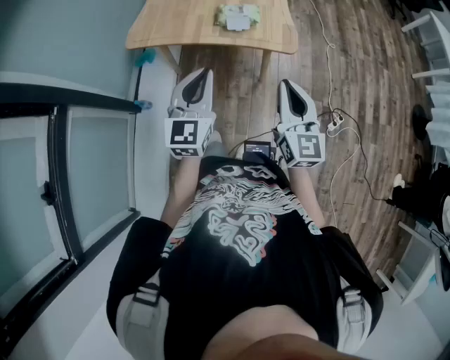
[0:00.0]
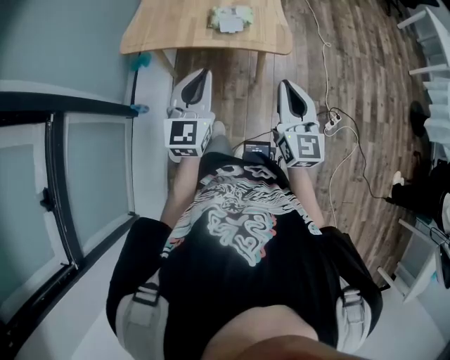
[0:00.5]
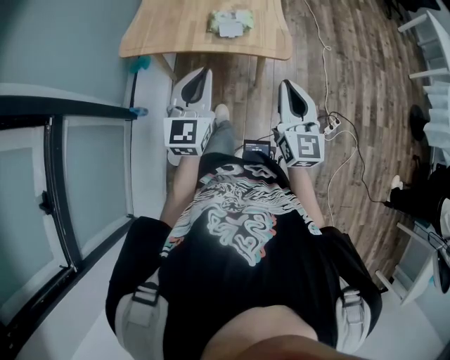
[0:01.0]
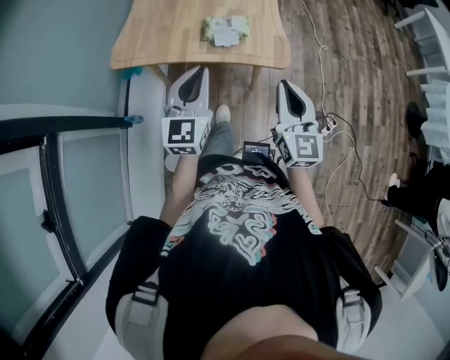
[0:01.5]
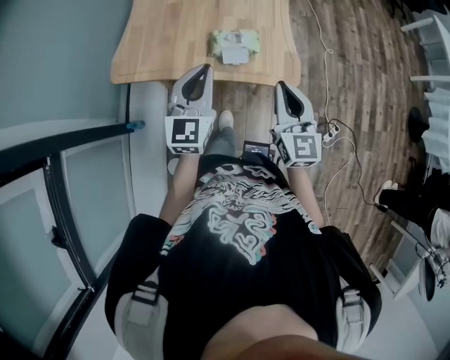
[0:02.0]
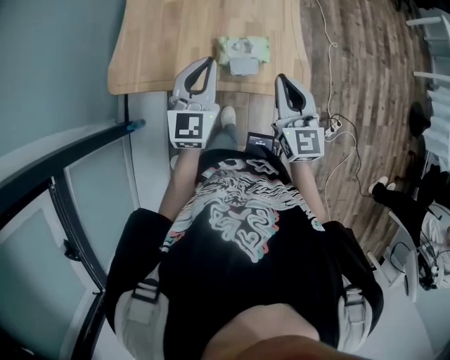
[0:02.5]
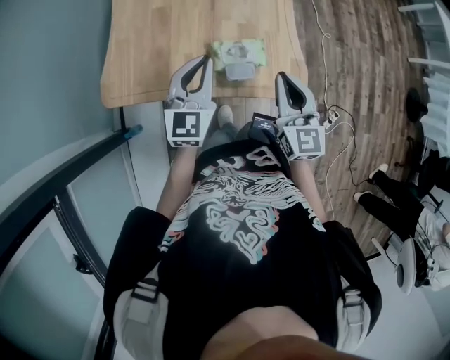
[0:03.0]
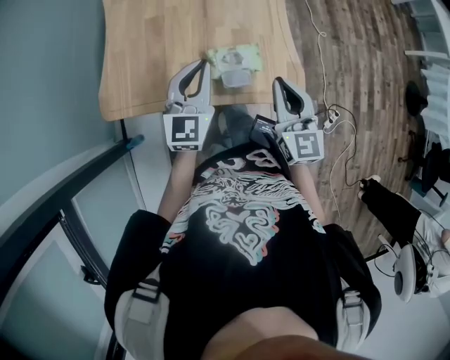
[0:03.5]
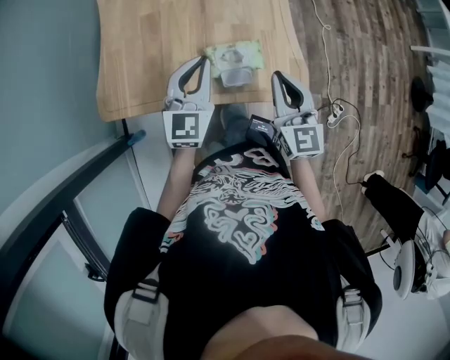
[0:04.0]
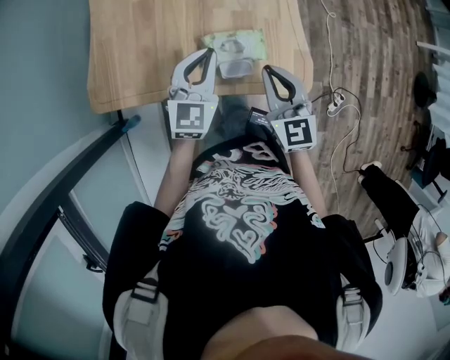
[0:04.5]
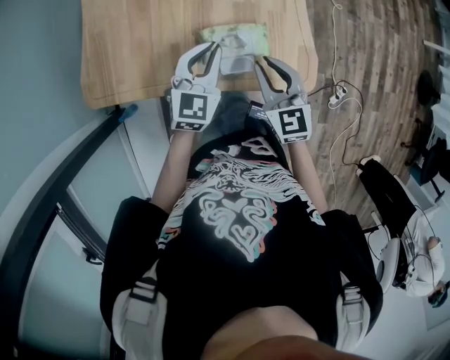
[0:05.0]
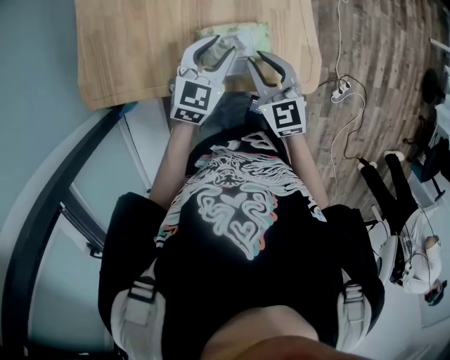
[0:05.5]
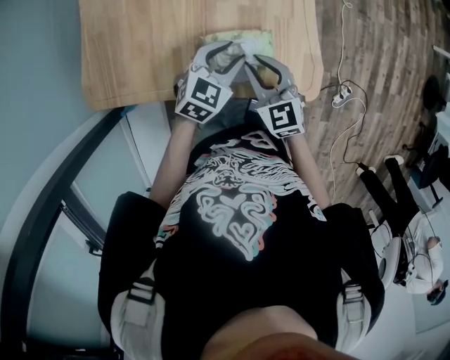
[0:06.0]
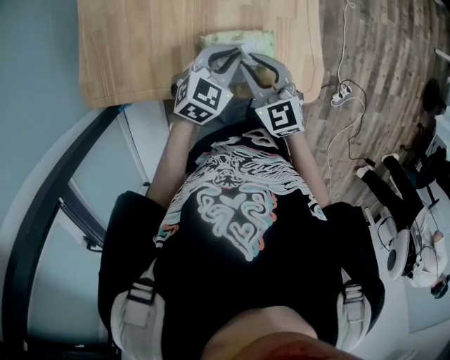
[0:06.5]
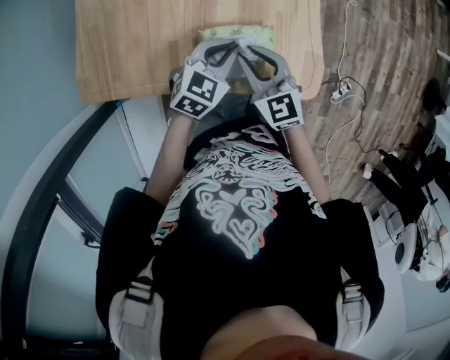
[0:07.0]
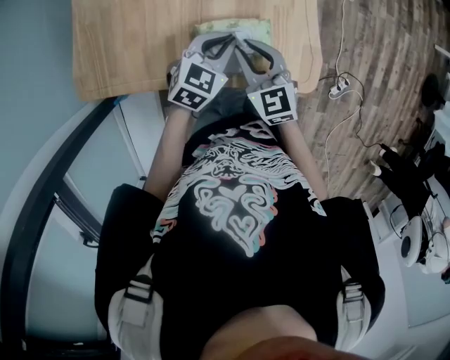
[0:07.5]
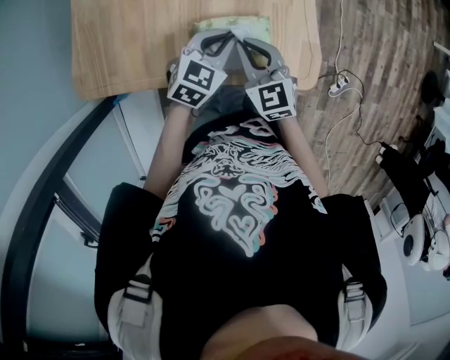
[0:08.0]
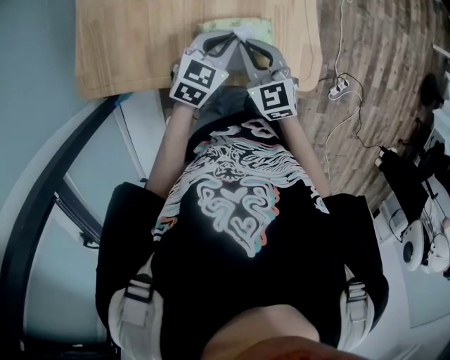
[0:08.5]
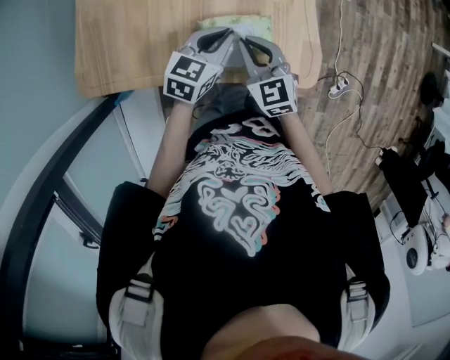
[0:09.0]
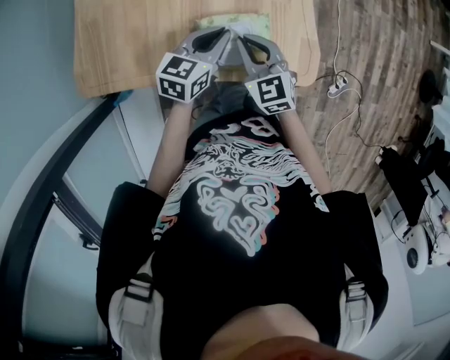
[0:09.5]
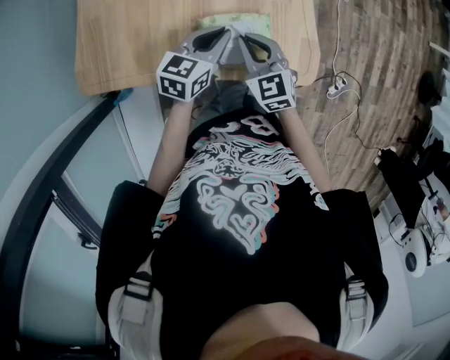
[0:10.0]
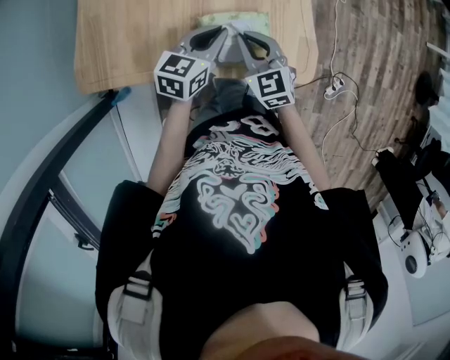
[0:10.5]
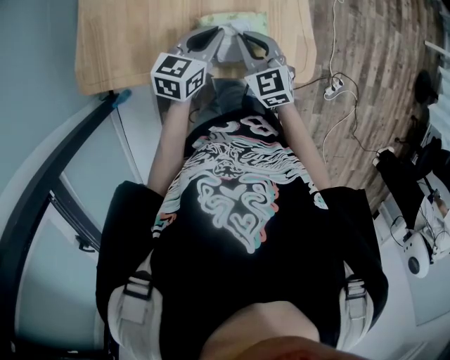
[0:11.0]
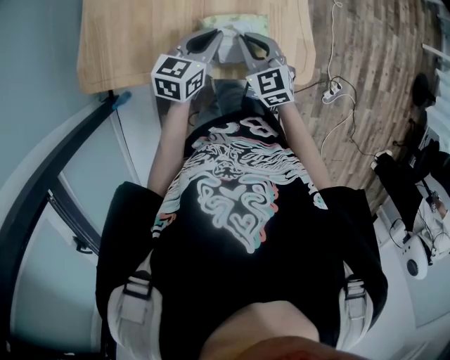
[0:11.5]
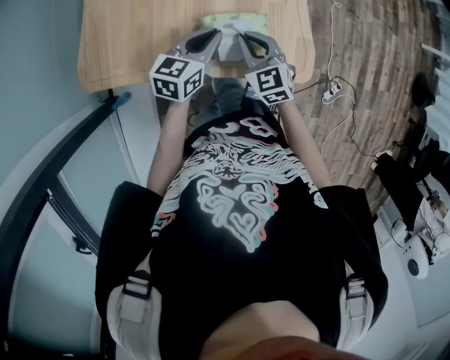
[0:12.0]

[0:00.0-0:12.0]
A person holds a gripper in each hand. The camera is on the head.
0.0 to 2.0 s: The grippers both shift forward by approximately 20 cm.
2.0 to 4.0 s: Both grippers move forward and downward, about 20 cm.
4.0 to 6.0 s: The right gripper heads downward and to the left, covering about 15 cm, rotates approximately 30 degrees, and opens, while the left gripper shifts roughly 15 cm downward and to the right, turns by some 30 degrees, and opens its fingers.
6.0 to 8.0 s: The left gripper closes.
8.0 to 10.0 s: The left gripper rotates roughly 20 degrees.
10.0 to 12.0 s: The grippers make only small movements.

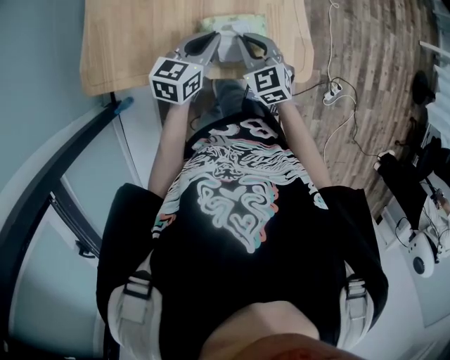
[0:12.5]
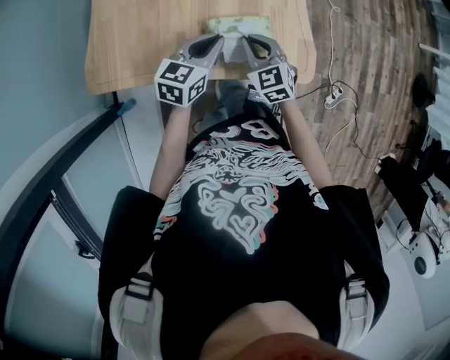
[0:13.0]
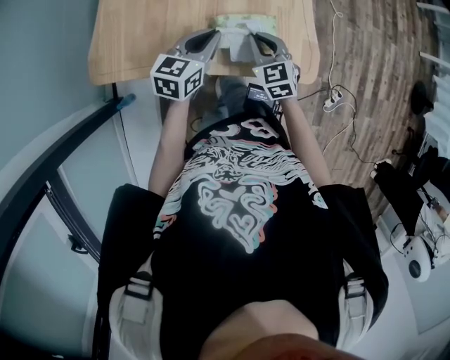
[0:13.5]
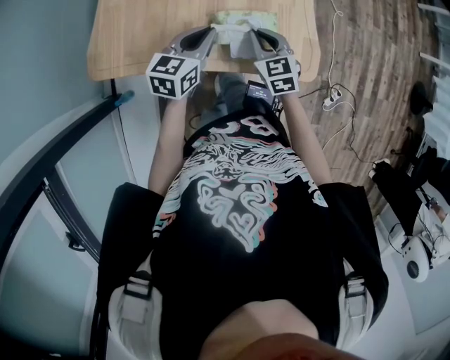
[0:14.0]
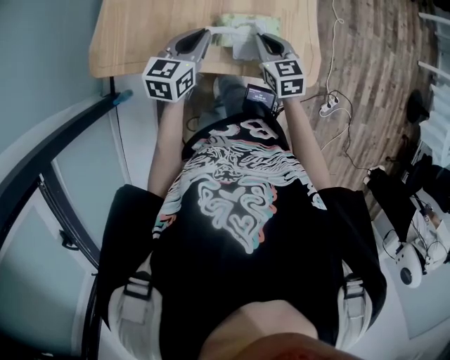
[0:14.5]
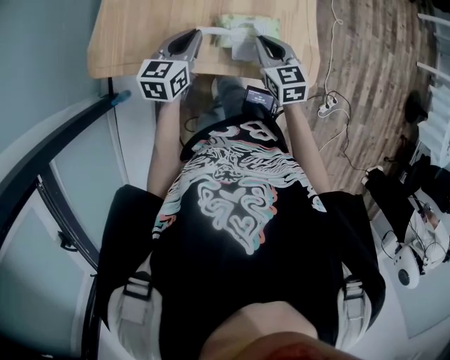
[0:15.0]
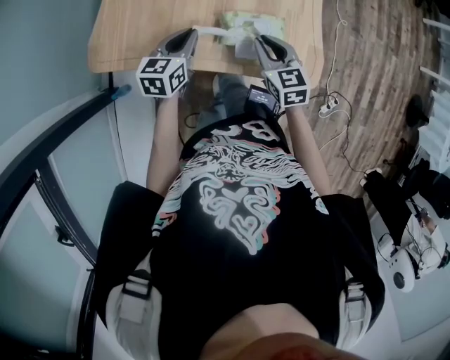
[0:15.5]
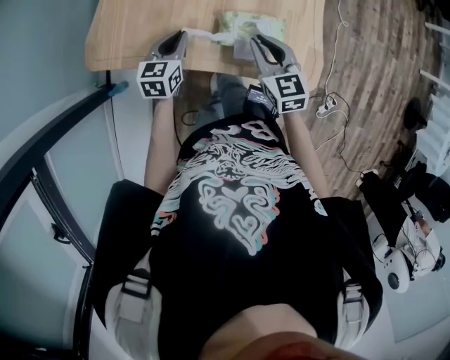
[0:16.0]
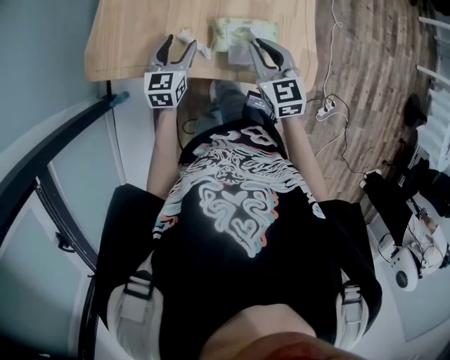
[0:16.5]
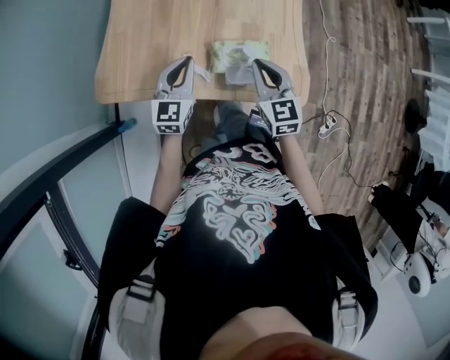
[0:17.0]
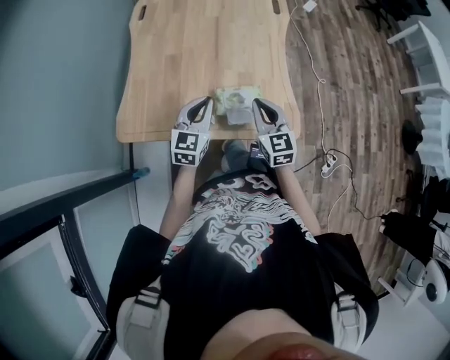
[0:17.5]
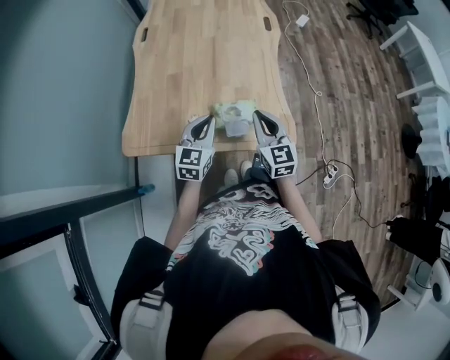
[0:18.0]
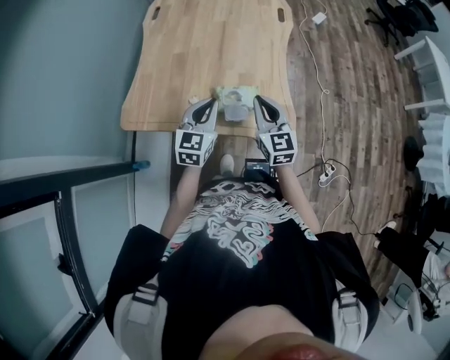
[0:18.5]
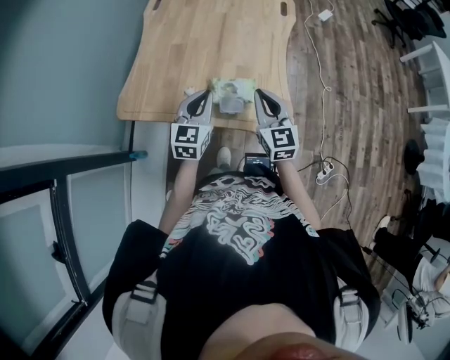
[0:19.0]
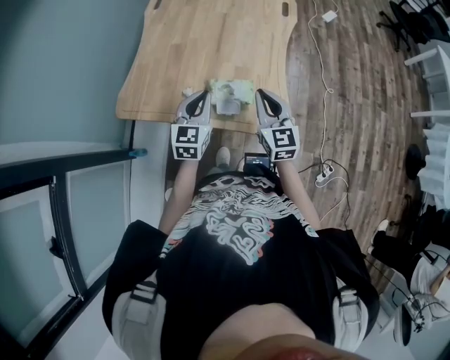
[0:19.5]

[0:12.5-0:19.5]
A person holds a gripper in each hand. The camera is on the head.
12.5 to 14.5 s: The left gripper is displaced to the left by roughly 5 cm.
14.5 to 16.0 s: The left gripper shifts about 10 cm downward and to the left.
16.0 to 17.5 s: The right gripper shifts some 10 cm upward. Meanwhile the left gripper travels upward and to the right by approximately 20 cm, swivels approximately 30 degrees, and opens, then closes once more.
17.5 to 19.5 s: The left gripper ends up approximately 5 cm from where it was. The right gripper goes some 5 cm to the right.

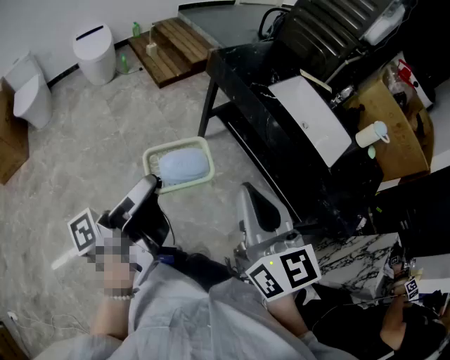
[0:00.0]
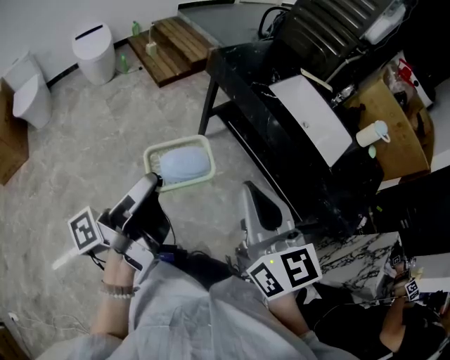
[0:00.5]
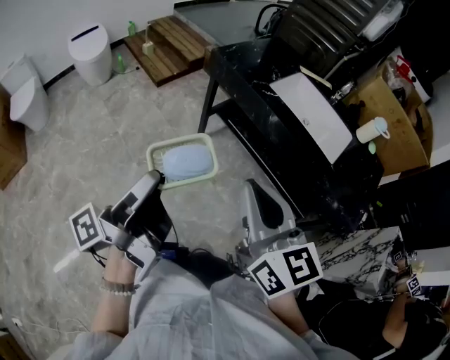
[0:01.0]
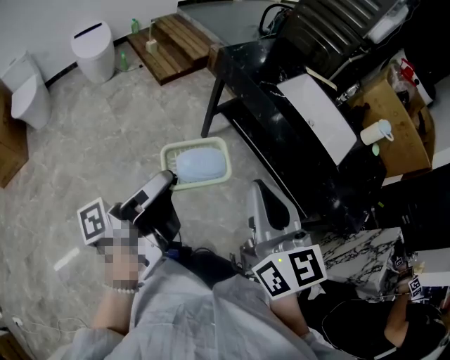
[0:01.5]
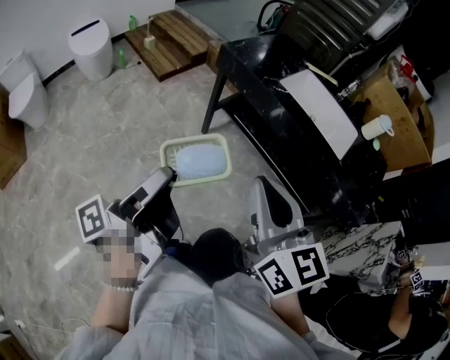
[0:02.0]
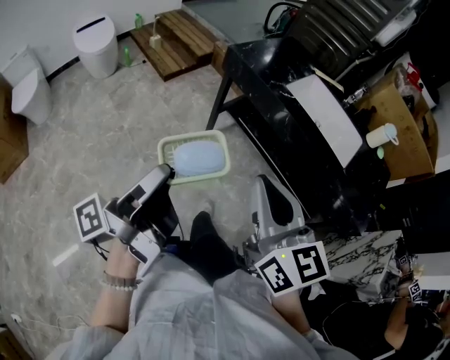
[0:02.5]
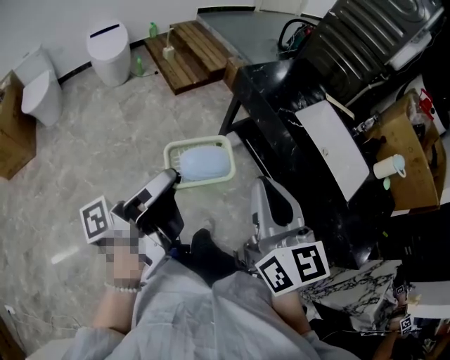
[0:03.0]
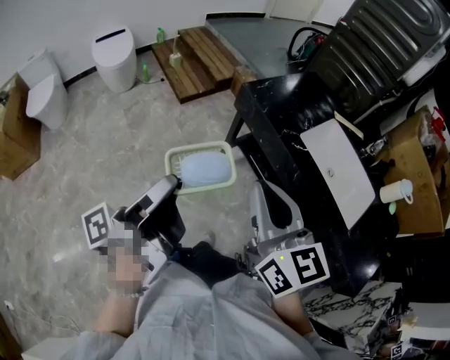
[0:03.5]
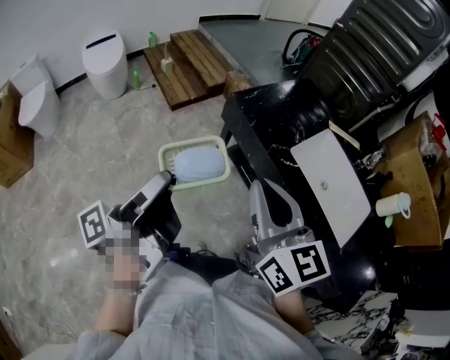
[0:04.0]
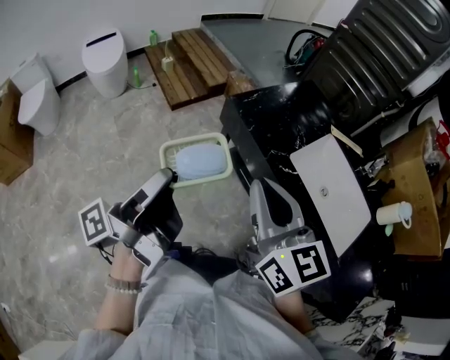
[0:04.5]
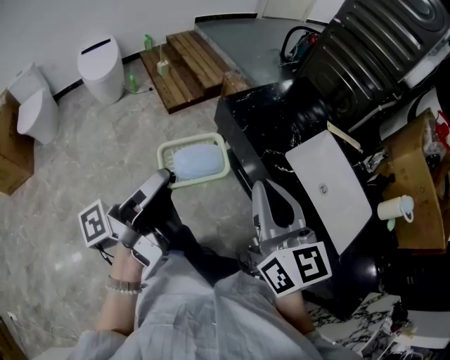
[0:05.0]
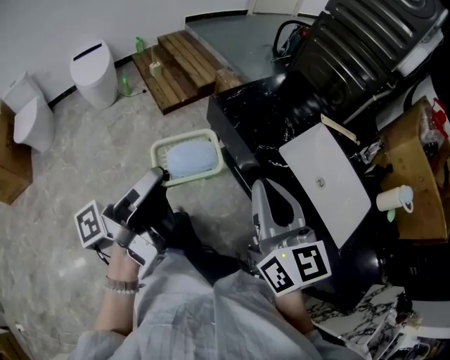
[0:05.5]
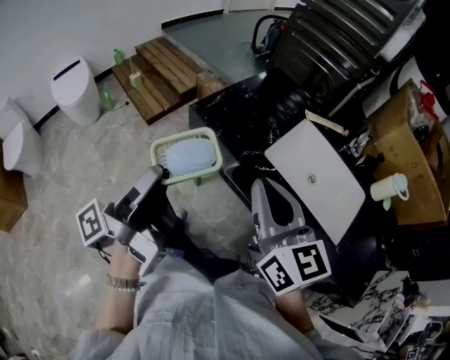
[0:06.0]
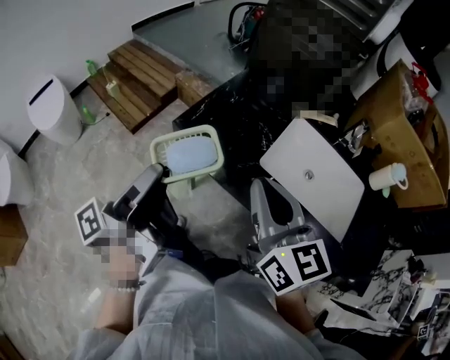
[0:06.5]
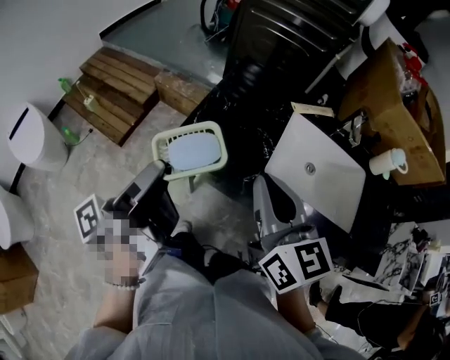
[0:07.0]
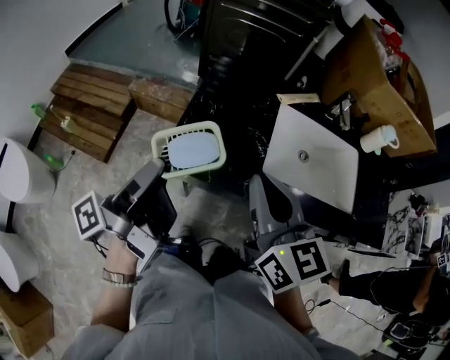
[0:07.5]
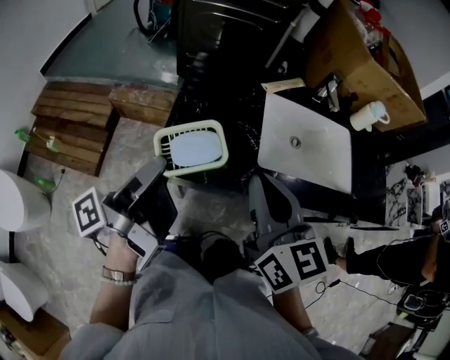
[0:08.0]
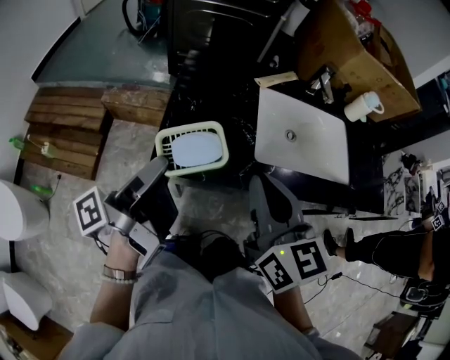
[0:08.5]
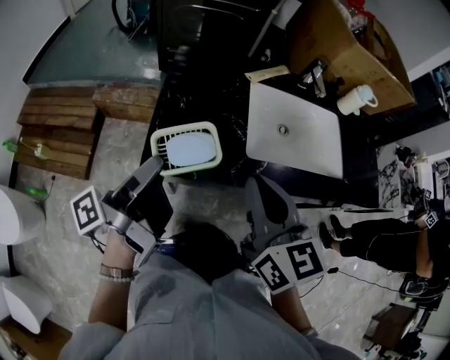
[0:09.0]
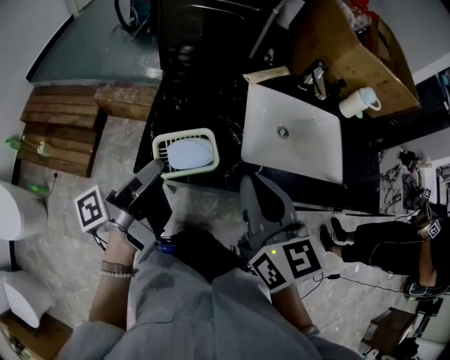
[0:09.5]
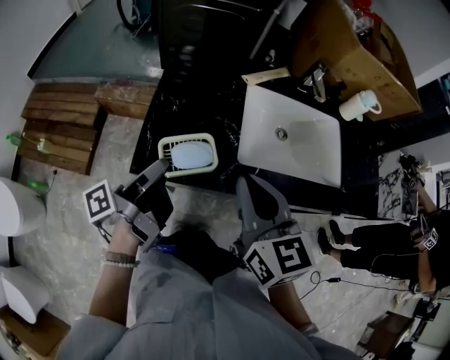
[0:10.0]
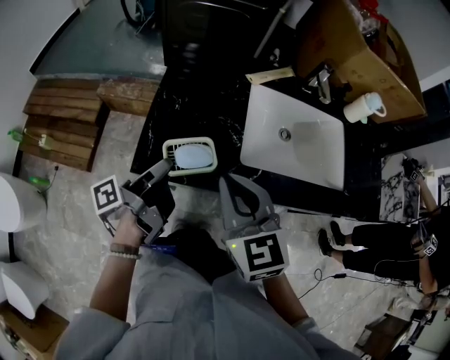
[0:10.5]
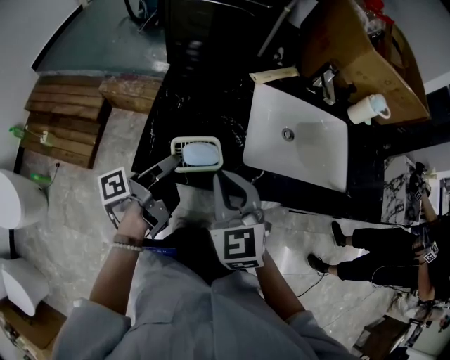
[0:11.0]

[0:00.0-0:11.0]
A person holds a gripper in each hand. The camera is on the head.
0.0 to 2.0 s: The right gripper moves some 5 cm.
2.0 to 3.5 s: The right gripper changes place by some 20 cm.
3.5 to 5.5 s: The right gripper shifts by roughly 15 cm.
5.5 to 7.5 s: The right gripper ends up roughly 20 cm from where it was, and rotates roughly 40 degrees.
9.0 to 11.0 s: The right gripper travels downward by approximately 10 cm, and turns by roughly 30 degrees.
